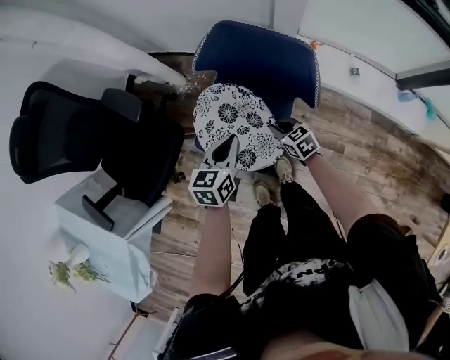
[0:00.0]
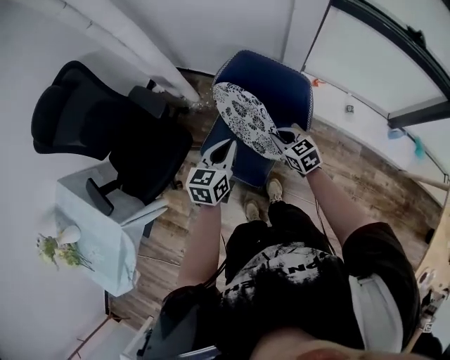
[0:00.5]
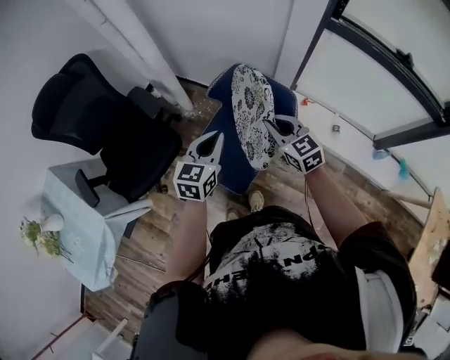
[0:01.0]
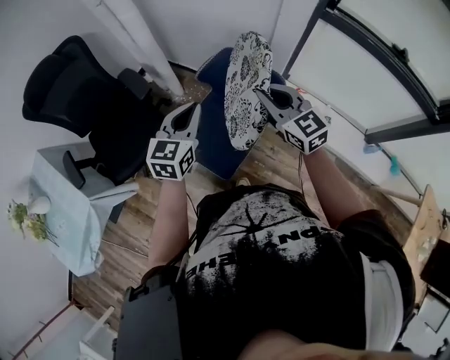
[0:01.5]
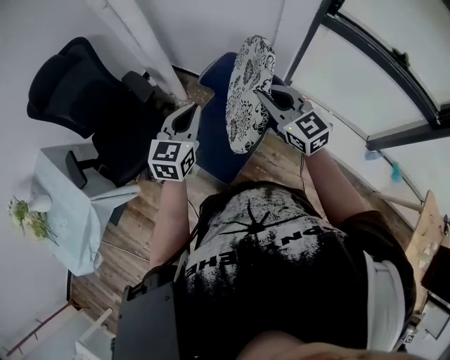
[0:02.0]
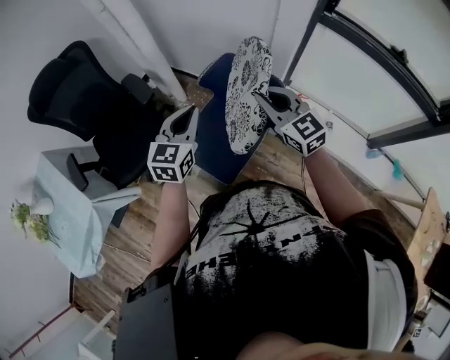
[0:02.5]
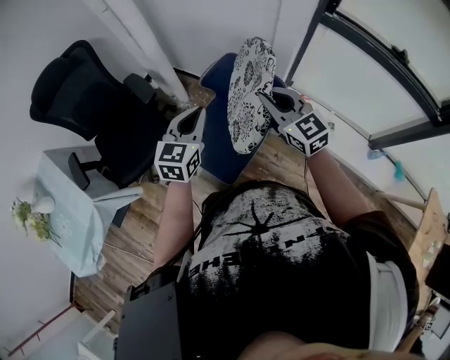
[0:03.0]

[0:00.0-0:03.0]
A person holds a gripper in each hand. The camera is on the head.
0:00.0 to 0:01.5: The left gripper goes approximately 25 cm upward, and swivels roughly 30 degrees. Meanwhile the right gripper goes about 40 cm upward, and points its fingers about 30 degrees further upward.
0:01.5 to 0:03.0: Neither gripper changes place.

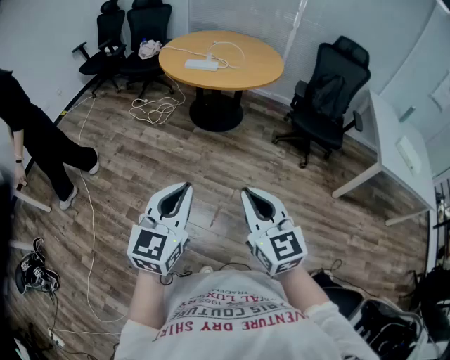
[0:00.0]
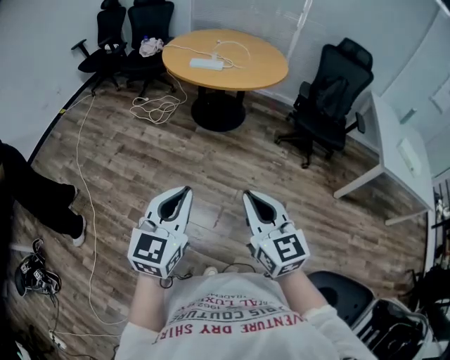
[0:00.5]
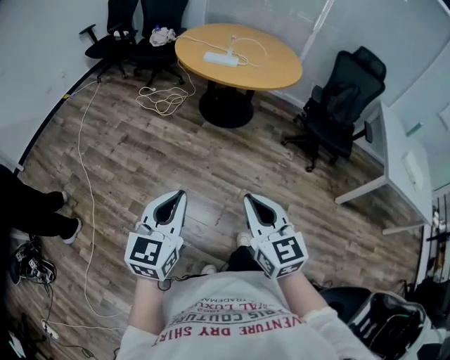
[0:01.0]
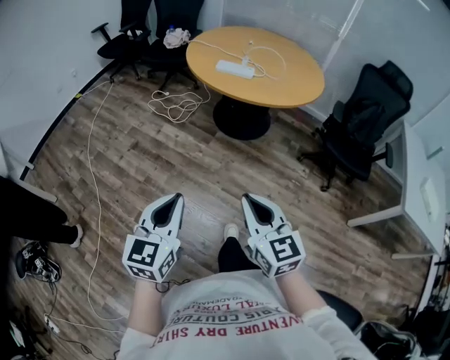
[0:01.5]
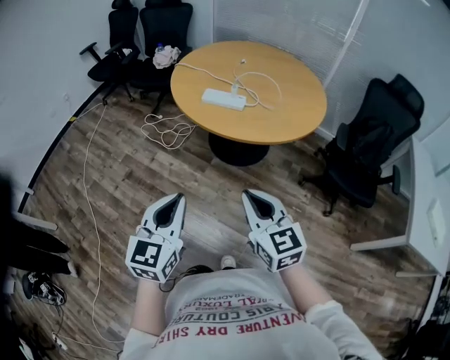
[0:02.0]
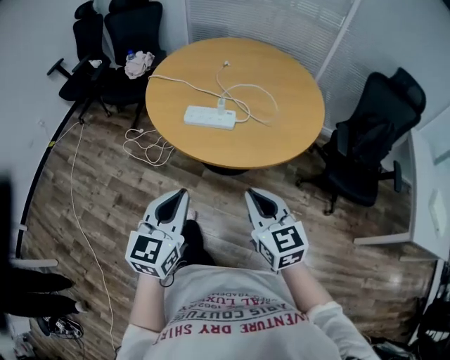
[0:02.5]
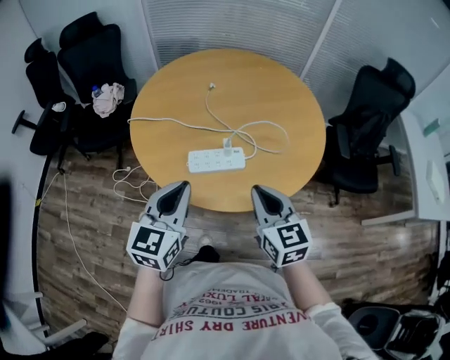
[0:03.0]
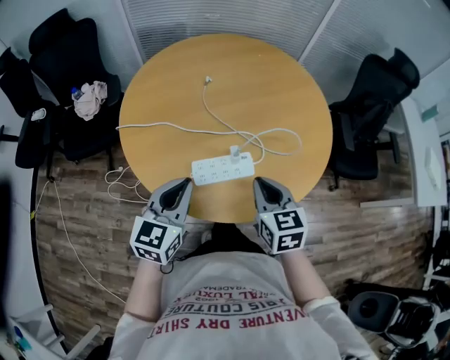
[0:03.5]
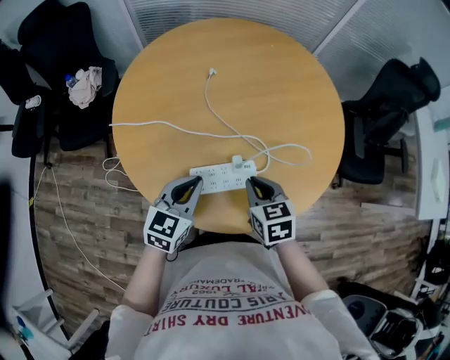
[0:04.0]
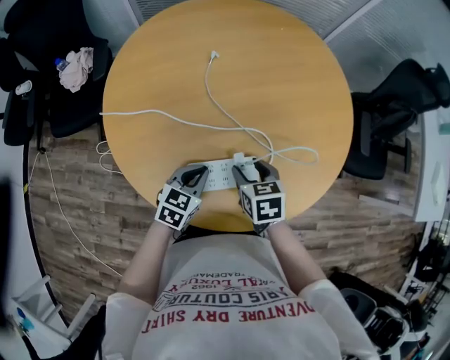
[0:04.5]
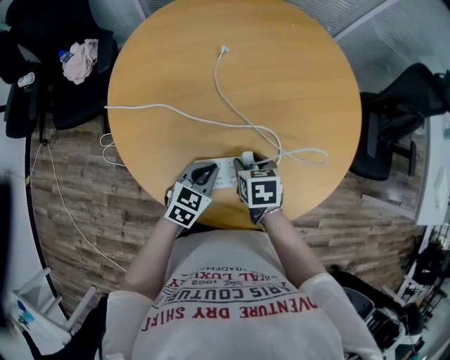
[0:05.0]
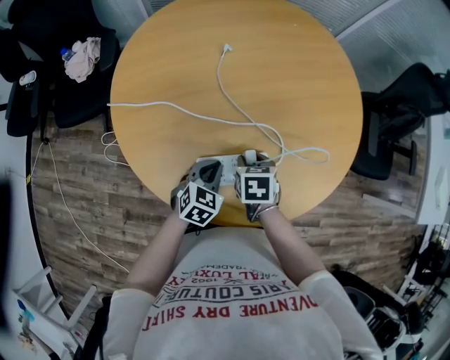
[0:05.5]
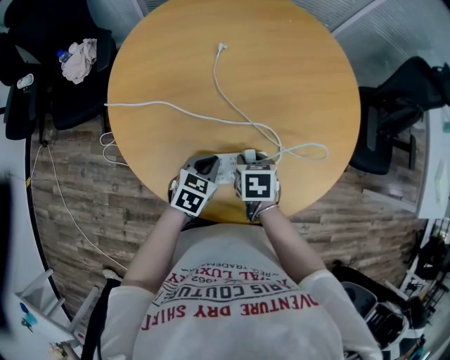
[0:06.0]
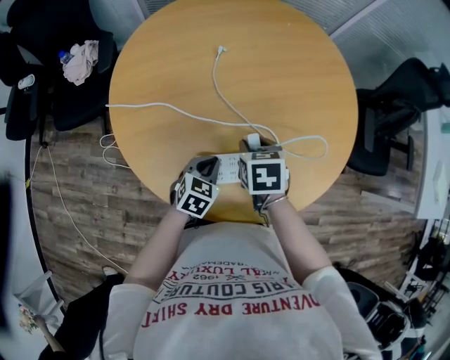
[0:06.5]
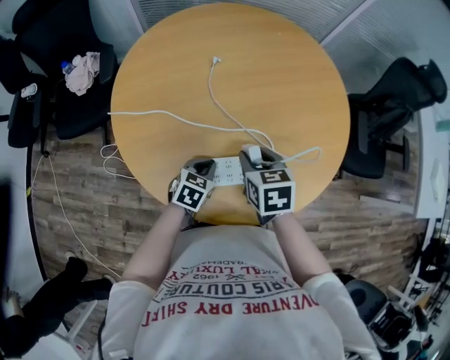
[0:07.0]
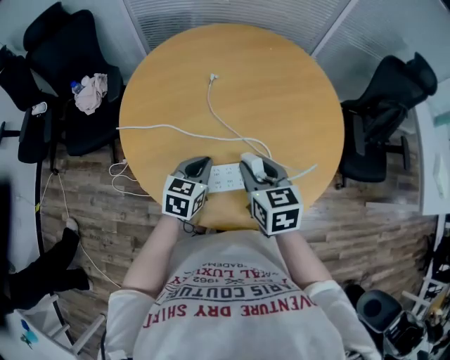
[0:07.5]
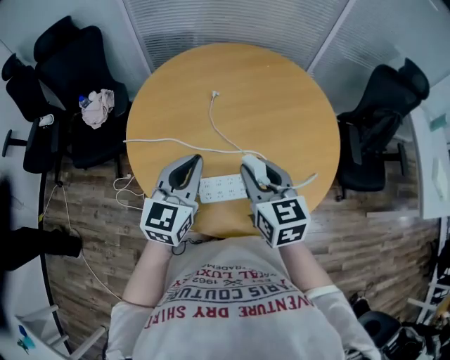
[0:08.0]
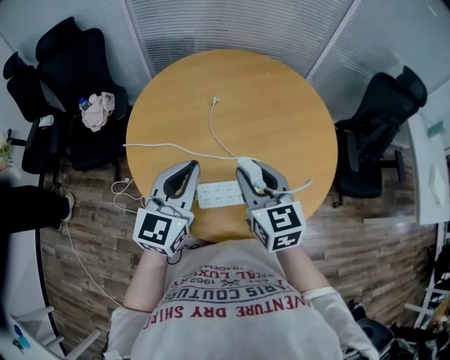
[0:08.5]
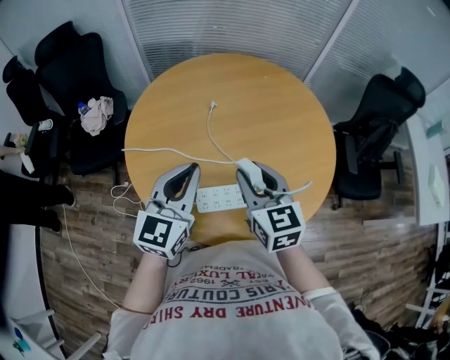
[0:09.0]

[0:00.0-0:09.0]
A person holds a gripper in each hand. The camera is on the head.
0:00.0 to 0:02.0: The two grippers go about 40 cm forward.
0:02.0 to 0:04.5: The two grippers travel together, some 60 cm. The left gripper rotates approximately 50 degrees; the right gripper tips its fingers downward by some 40 degrees, and opens up.
0:04.5 to 0:07.0: The right gripper shifts some 5 cm upward.
0:07.0 to 0:09.0: The right gripper shifts roughly 15 cm upward, and angles its fingers upward, by some 30 degrees, while the left gripper travels upward by roughly 30 cm, and points its fingers approximately 40 degrees further upward.

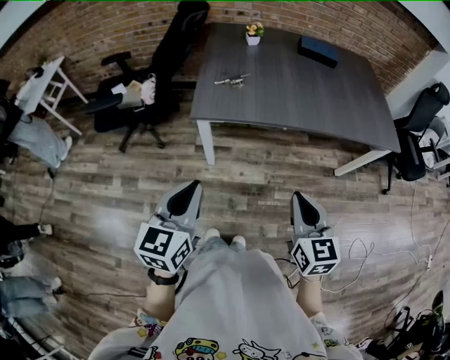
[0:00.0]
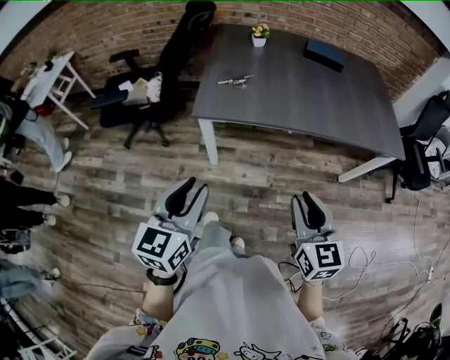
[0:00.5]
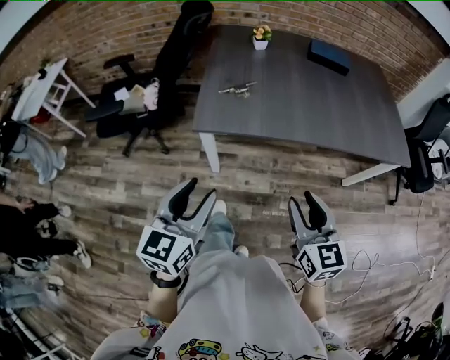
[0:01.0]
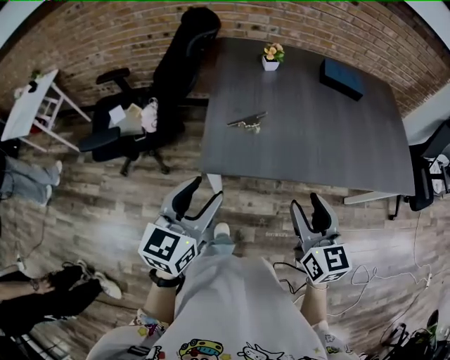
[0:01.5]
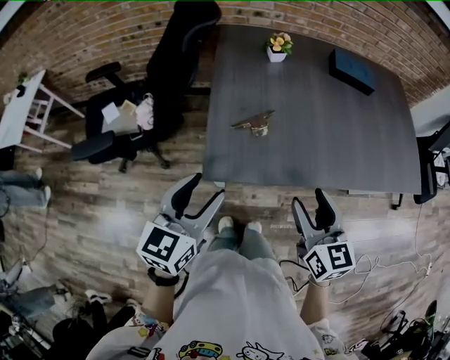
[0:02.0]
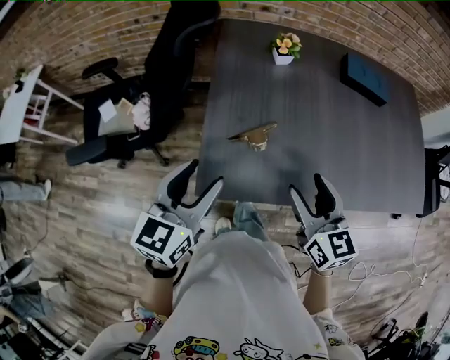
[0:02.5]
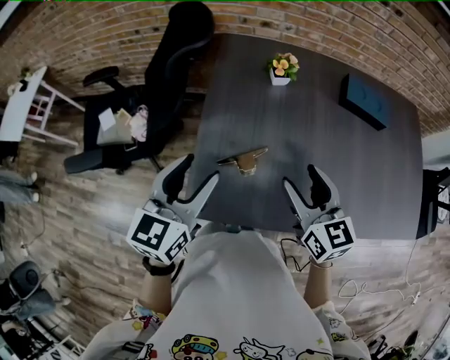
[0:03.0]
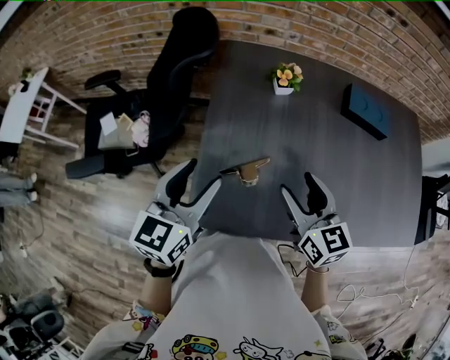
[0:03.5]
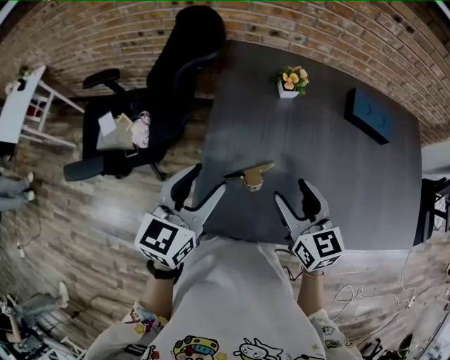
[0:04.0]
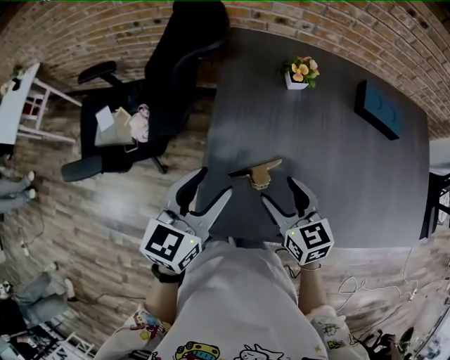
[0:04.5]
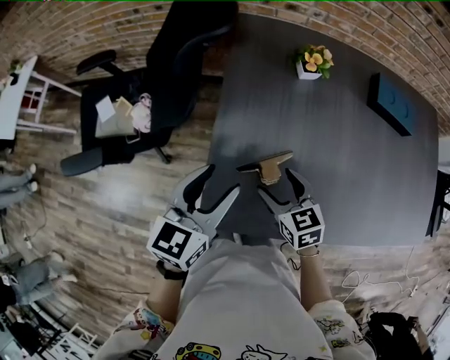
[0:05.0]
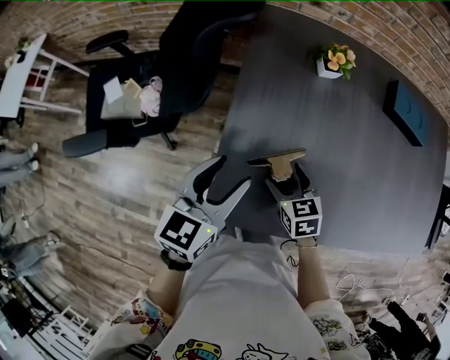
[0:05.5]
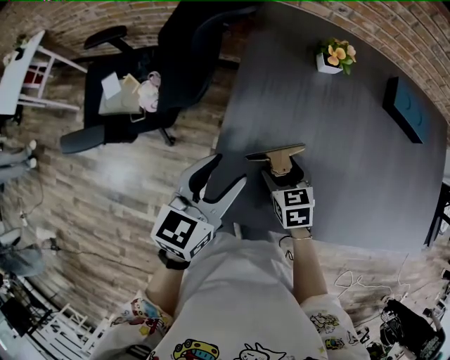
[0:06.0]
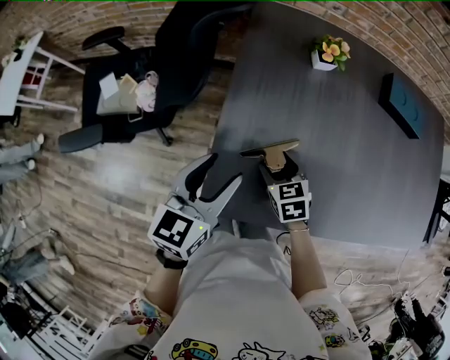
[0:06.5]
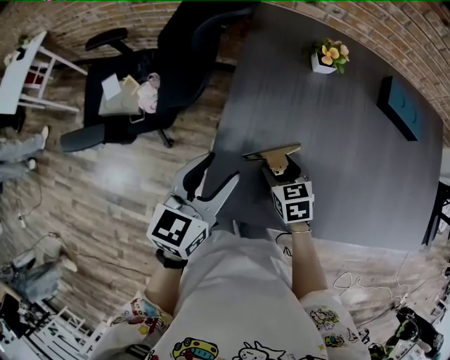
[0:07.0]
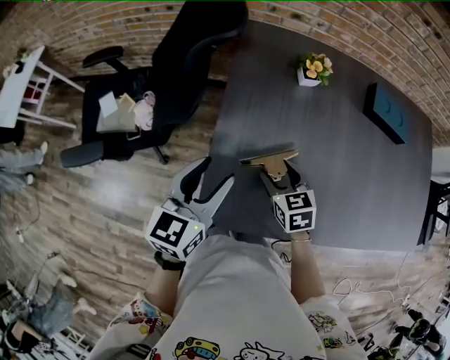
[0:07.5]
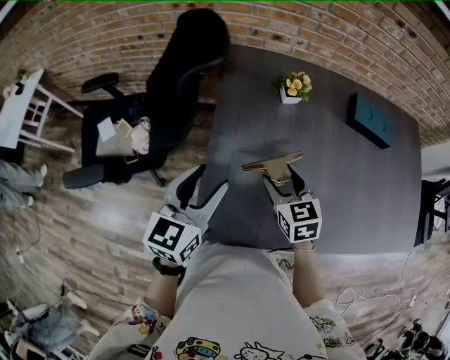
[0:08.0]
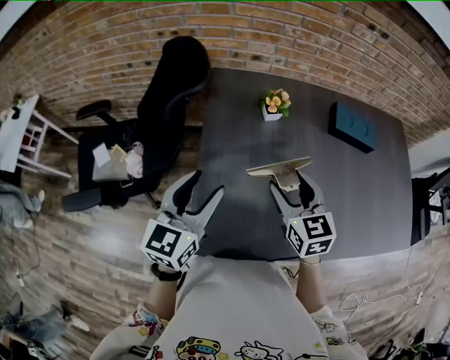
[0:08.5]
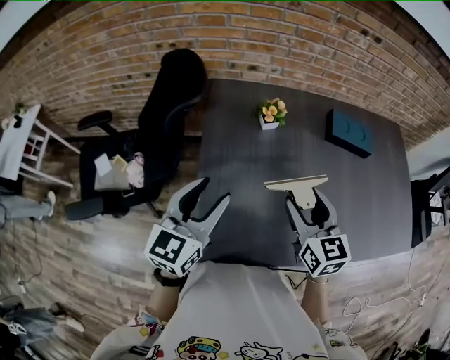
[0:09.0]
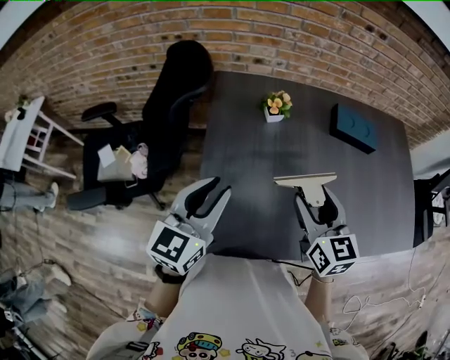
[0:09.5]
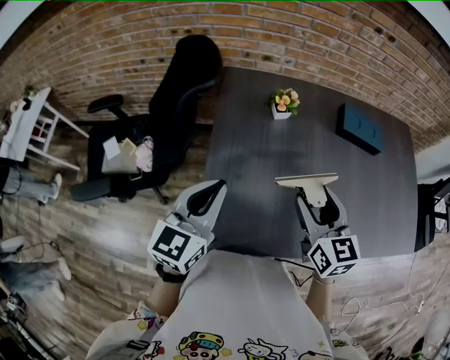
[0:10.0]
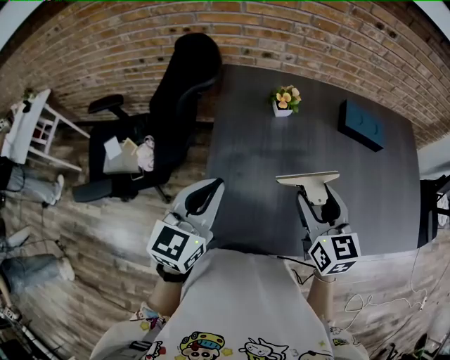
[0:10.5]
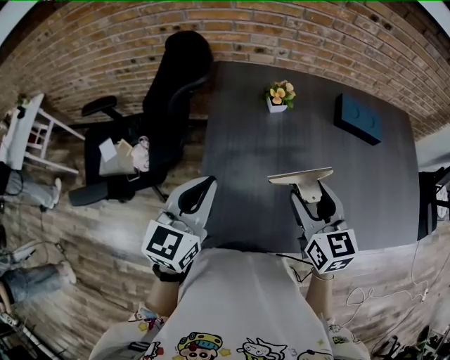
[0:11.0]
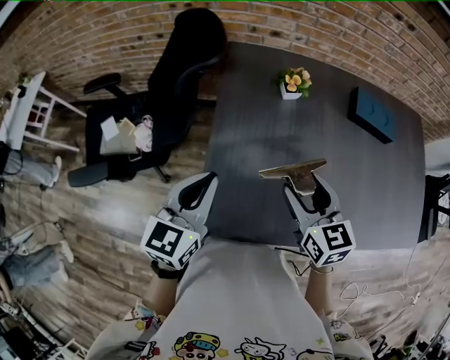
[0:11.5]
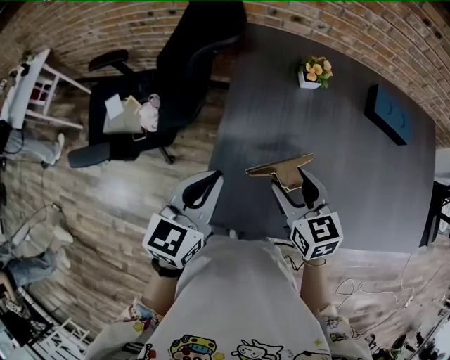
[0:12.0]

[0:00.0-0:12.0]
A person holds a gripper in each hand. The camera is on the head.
0:00.0 to 0:02.0: The grippers both shift forward by approximately 25 cm. The right gripper opens; the left gripper opens its fingers.
0:02.0 to 0:04.0: Both grippers travel together forward, approximately 20 cm.
0:04.0 to 0:06.0: The left gripper heads downward, covering some 10 cm. The right gripper goes roughly 20 cm downward, and turns by approximately 30 degrees.
0:06.0 to 0:08.0: The left gripper goes some 5 cm upward, while the right gripper goes roughly 15 cm upward.
0:08.0 to 0:10.0: The left gripper heads upward, covering approximately 5 cm, and closes up. Meanwhile the right gripper is displaced upward and to the right by roughly 15 cm, and changes its angle by approximately 20 degrees.
0:10.0 to 0:12.0: The left gripper heads downward, covering approximately 5 cm; the right gripper is displaced to the left and downward by about 15 cm, and turns by some 20 degrees.

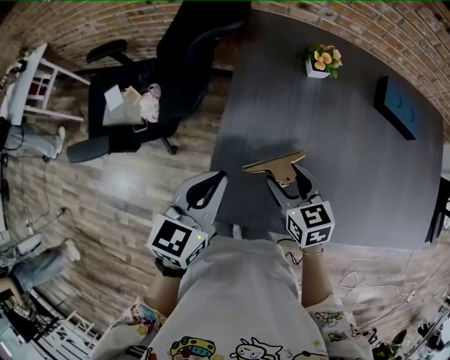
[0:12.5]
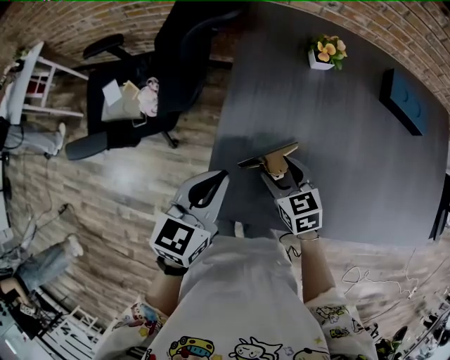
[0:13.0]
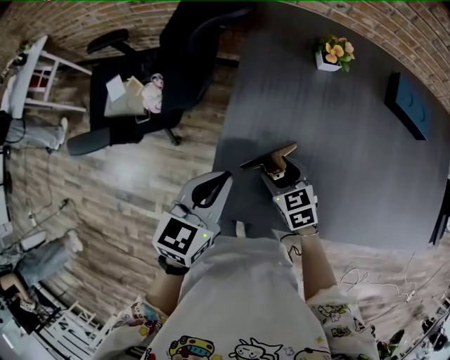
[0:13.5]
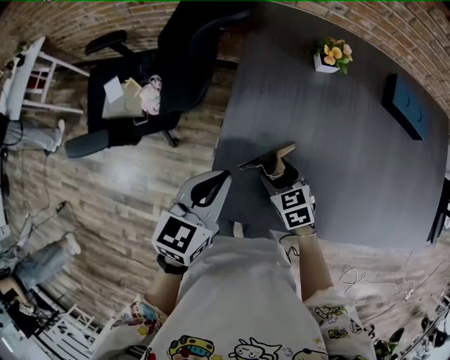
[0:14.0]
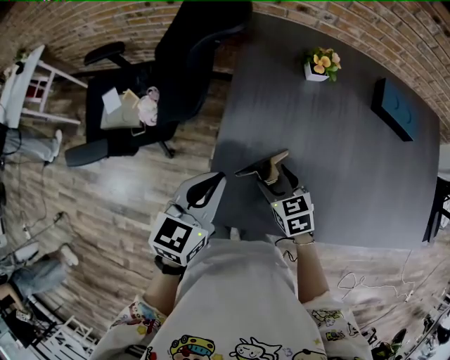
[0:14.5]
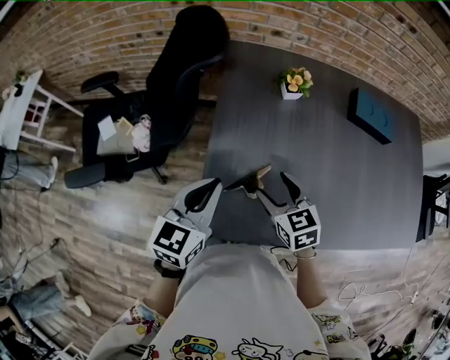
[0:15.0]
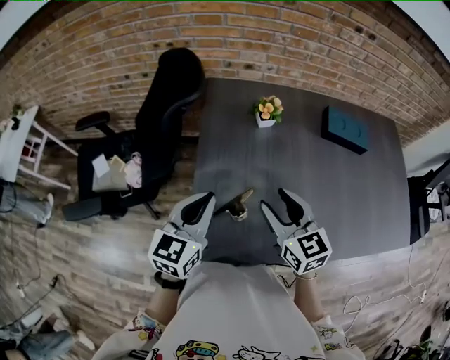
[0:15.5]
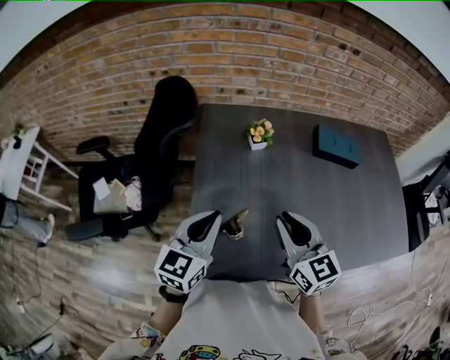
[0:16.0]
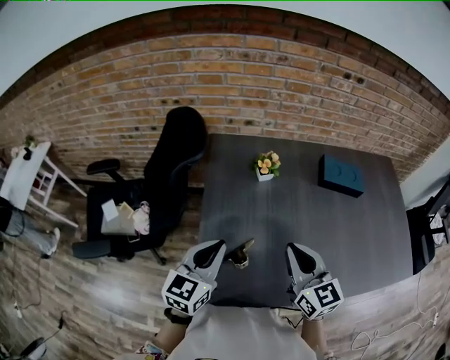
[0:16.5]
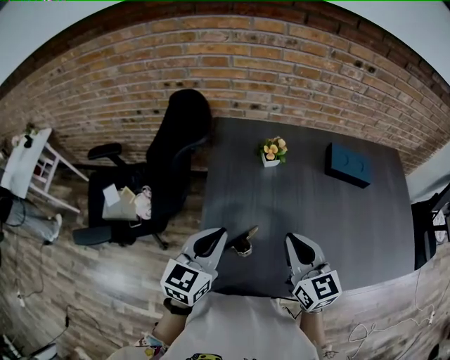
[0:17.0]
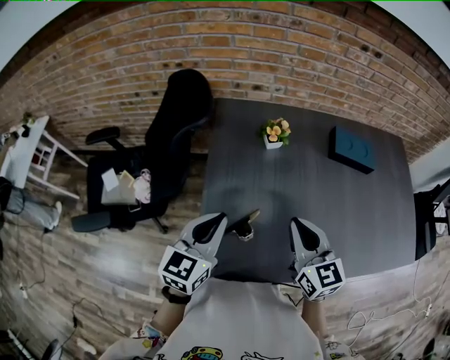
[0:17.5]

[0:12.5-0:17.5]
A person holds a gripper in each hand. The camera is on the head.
0:12.5 to 0:15.0: The right gripper reaches roughly 10 cm downward, then returns.
0:15.0 to 0:17.5: The right gripper moves upward and to the right, some 15 cm, changes its angle by some 30 degrees, and closes its fingers. Meanwhile the left gripper ends up about 5 cm from where it was.
